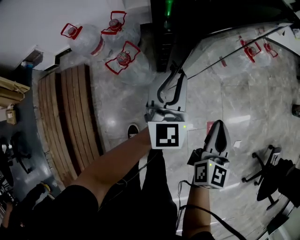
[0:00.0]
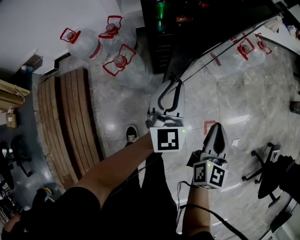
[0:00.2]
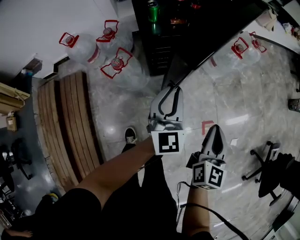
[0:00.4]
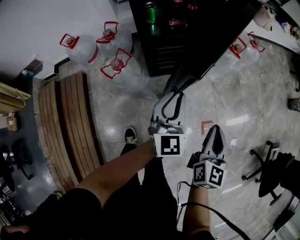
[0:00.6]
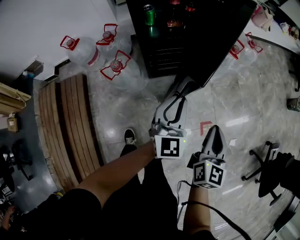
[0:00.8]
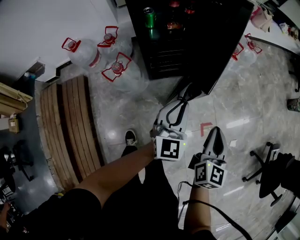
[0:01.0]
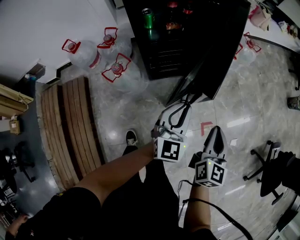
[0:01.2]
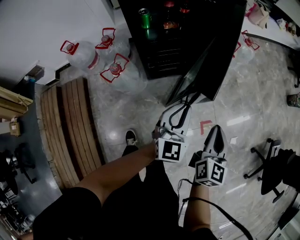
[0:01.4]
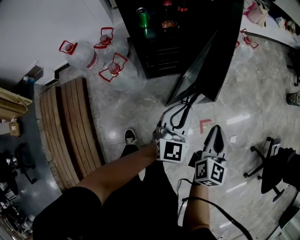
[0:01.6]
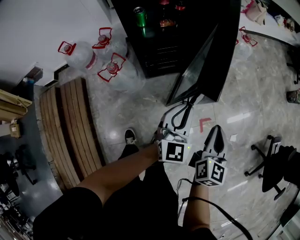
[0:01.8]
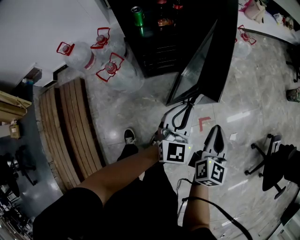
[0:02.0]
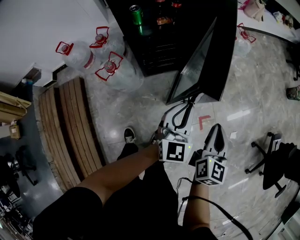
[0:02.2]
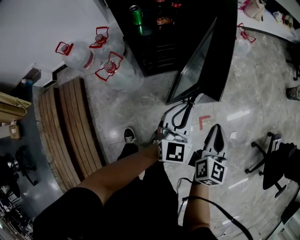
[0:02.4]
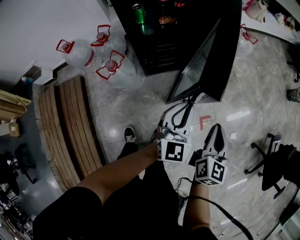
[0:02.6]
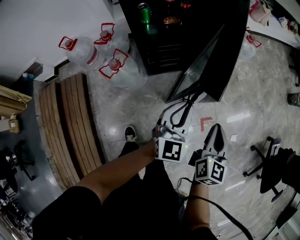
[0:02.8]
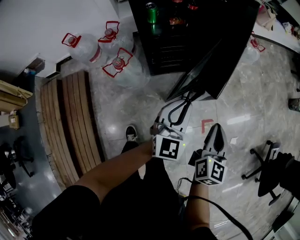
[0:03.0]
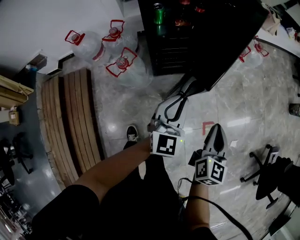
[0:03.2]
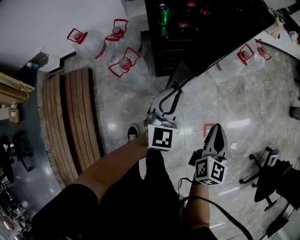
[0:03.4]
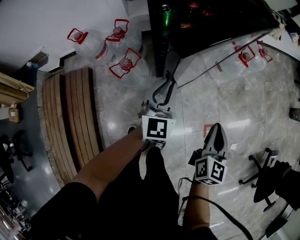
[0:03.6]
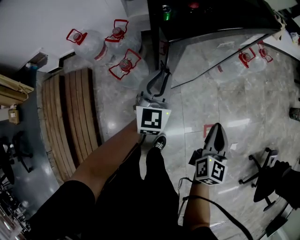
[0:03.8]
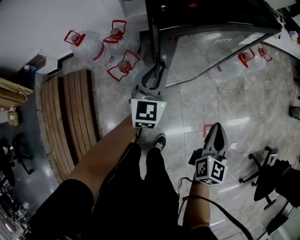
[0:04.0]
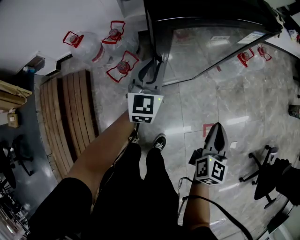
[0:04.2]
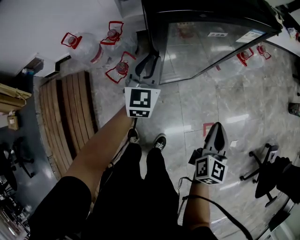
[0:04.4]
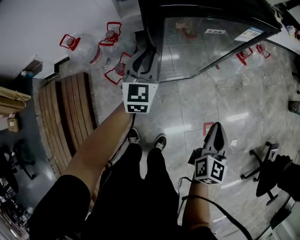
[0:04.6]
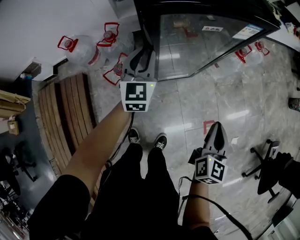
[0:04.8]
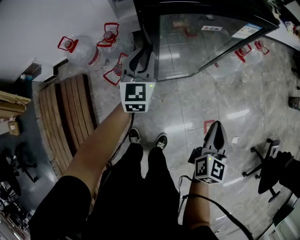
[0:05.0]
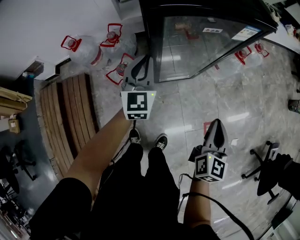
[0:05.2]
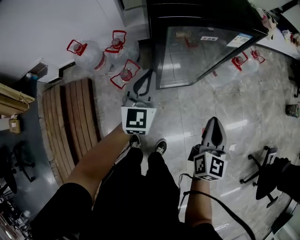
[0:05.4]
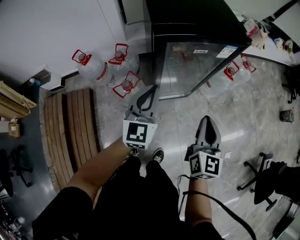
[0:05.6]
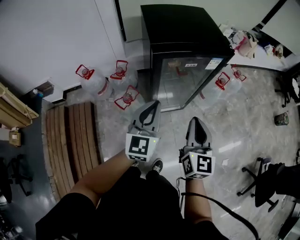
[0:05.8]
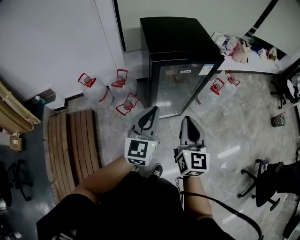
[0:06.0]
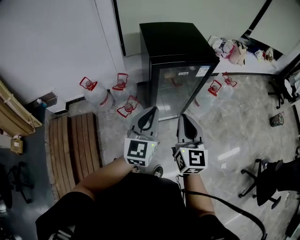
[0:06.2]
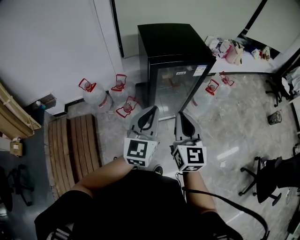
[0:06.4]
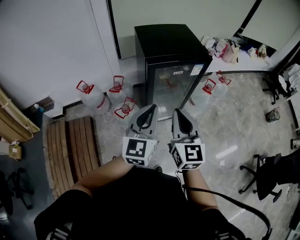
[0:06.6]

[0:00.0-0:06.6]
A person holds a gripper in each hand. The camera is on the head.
0:00.0 to 0:01.6: The right gripper moves to the right, about 10 cm, while the left gripper is displaced to the right and backward by about 20 cm.
0:01.6 to 0:03.2: The left gripper is displaced to the left by approximately 10 cm. The right gripper goes approximately 5 cm to the left.
0:03.2 to 0:05.0: The right gripper shifts approximately 5 cm forward. The left gripper moves to the left and forward, roughly 25 cm.
0:05.0 to 0:06.6: The right gripper heads upward and to the left, covering roughly 35 cm, and changes its angle by some 30 degrees; the left gripper moves upward and backward, approximately 40 cm.

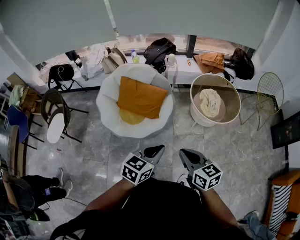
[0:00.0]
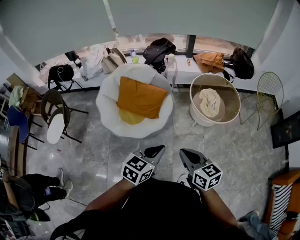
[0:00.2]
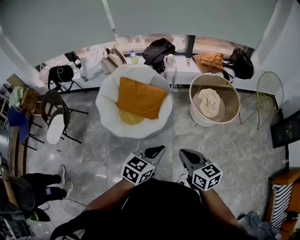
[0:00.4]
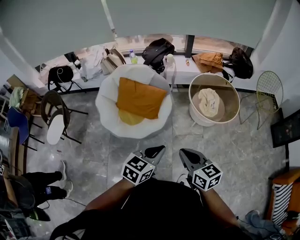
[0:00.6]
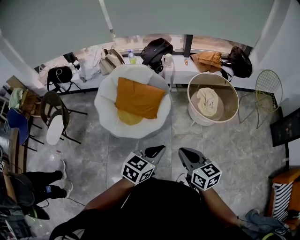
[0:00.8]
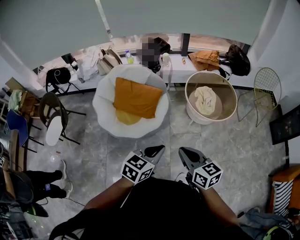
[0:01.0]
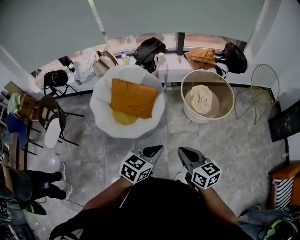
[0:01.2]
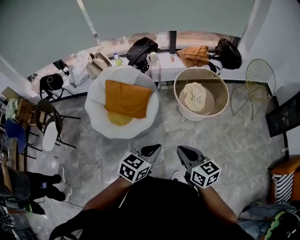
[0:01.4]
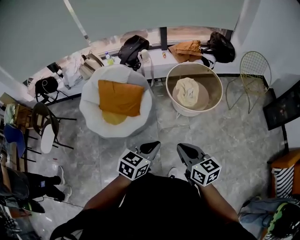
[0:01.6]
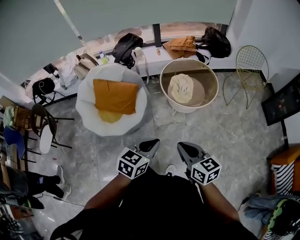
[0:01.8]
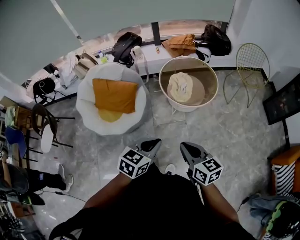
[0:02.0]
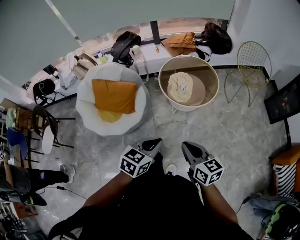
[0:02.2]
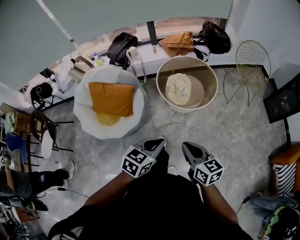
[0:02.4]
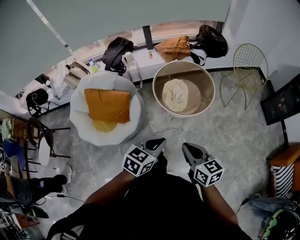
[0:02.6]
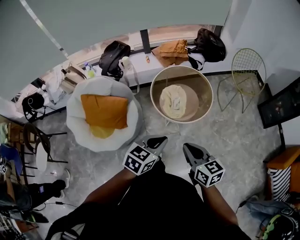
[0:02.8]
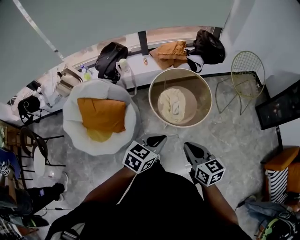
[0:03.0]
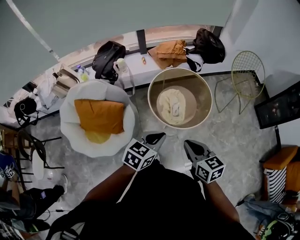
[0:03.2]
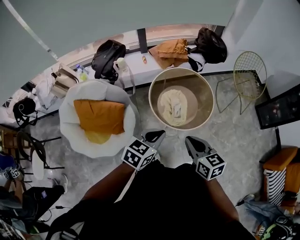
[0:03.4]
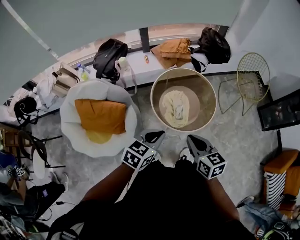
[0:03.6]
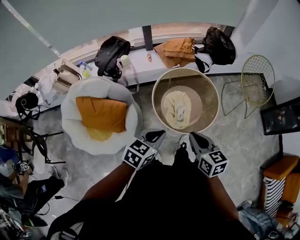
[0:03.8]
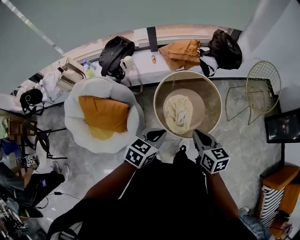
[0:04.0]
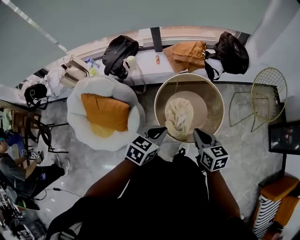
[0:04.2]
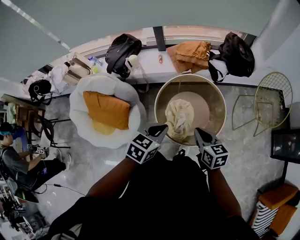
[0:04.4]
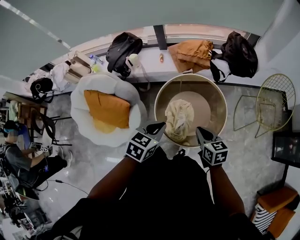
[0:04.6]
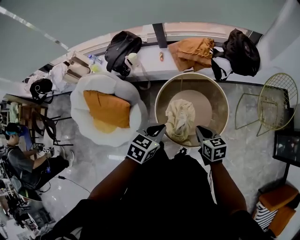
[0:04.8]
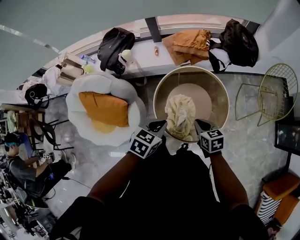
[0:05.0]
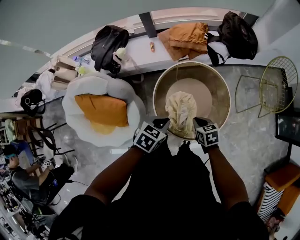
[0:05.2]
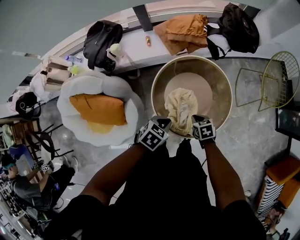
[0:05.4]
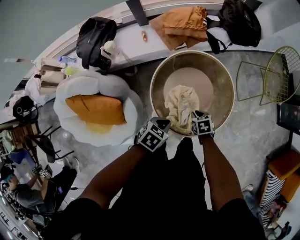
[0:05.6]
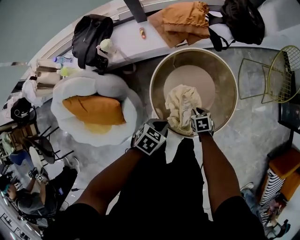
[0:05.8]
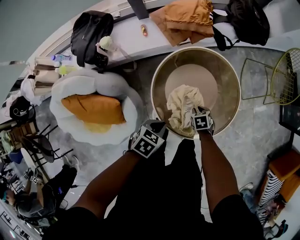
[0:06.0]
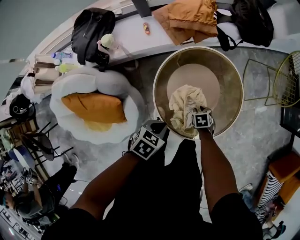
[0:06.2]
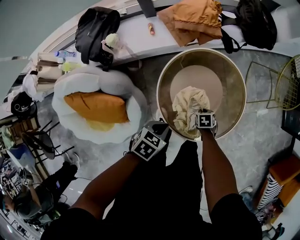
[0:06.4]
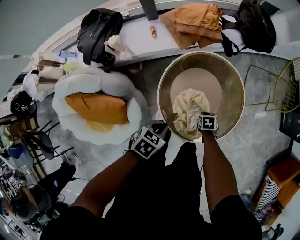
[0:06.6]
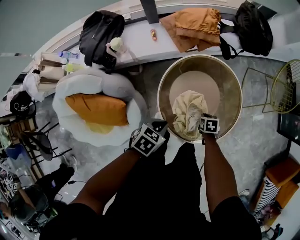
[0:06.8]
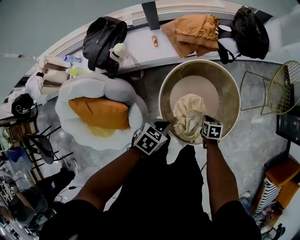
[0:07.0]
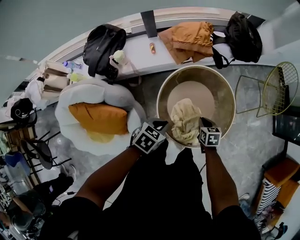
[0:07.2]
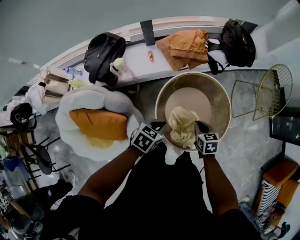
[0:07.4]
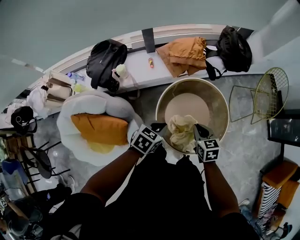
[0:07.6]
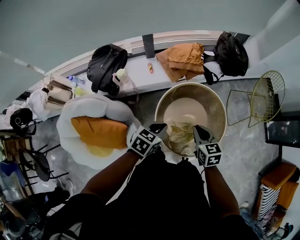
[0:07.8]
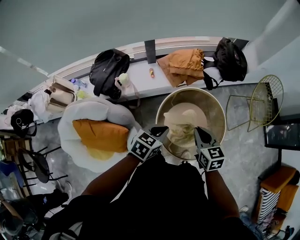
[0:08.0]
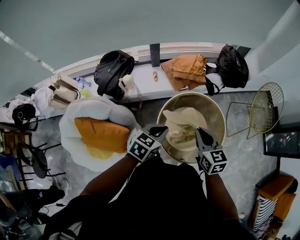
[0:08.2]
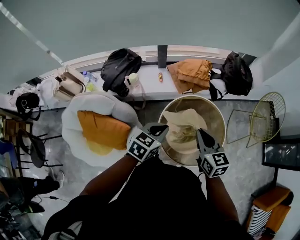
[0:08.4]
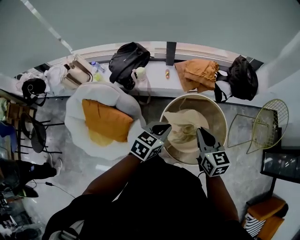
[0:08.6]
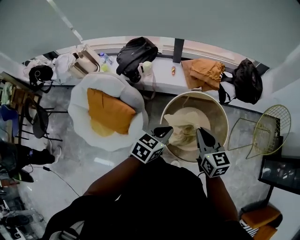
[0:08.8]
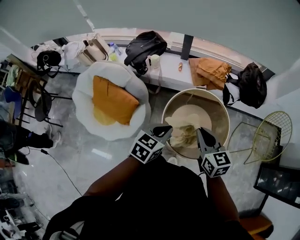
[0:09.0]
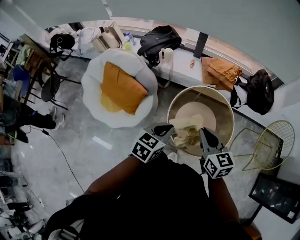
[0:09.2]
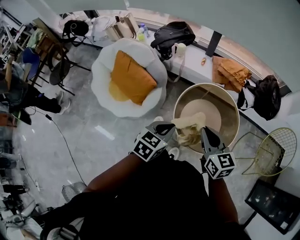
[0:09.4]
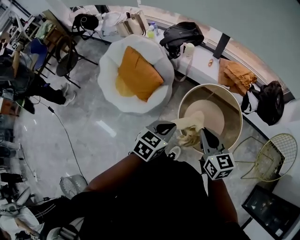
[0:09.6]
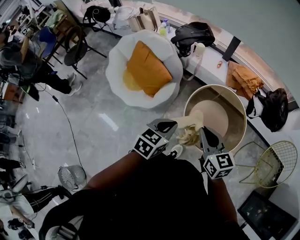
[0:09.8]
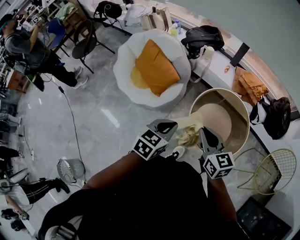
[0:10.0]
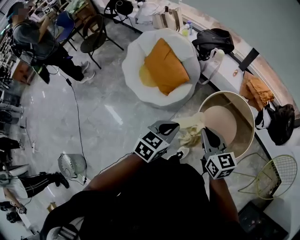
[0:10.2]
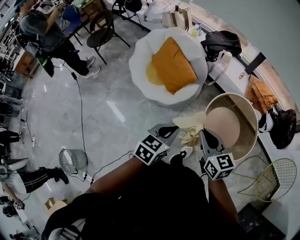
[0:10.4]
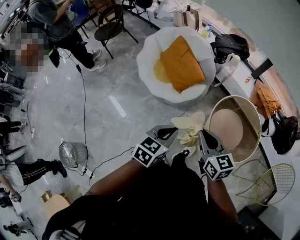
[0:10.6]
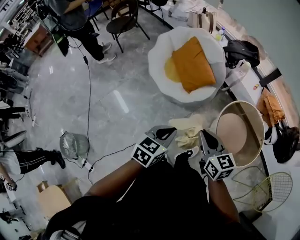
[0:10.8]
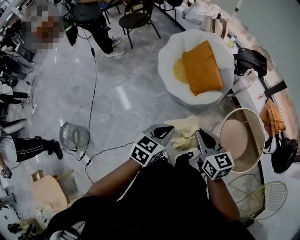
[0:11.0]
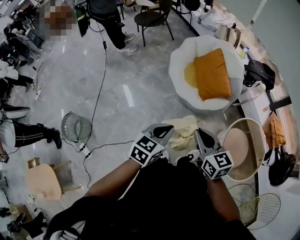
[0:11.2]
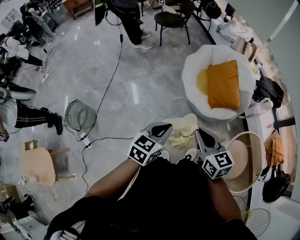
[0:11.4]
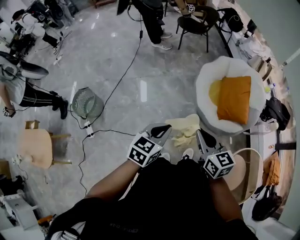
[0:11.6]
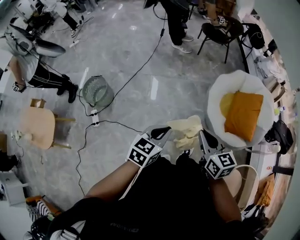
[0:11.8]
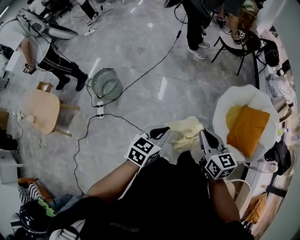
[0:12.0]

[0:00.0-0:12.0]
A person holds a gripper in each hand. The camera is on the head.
0:00.0 to 0:01.6: Both grippers move to the right, roughly 15 cm.
0:01.6 to 0:03.0: The right gripper is displaced forward and to the right by approximately 25 cm. The left gripper goes some 25 cm forward.
0:03.0 to 0:04.4: The grippers both shift forward by about 25 cm.
0:04.4 to 0:06.0: The left gripper shifts roughly 25 cm downward, and swivels some 30 degrees. The right gripper goes about 35 cm downward, angles its fingers downward, by about 40 degrees, and opens up.
0:06.0 to 0:07.6: The left gripper goes some 15 cm upward, while the right gripper travels upward by about 25 cm, and points its fingers approximately 30 degrees further upward.
0:07.6 to 0:09.0: The right gripper shifts approximately 20 cm upward, and turns by approximately 30 degrees. Meanwhile the left gripper ends up roughly 20 cm from where it was, and swivels roughly 30 degrees.
0:09.0 to 0:10.4: The right gripper moves some 30 cm, and turns by about 30 degrees. The left gripper ends up roughly 30 cm from where it was, and rotates roughly 30 degrees.
0:10.4 to 0:12.0: The pair of grippers is taken some 50 cm. The left gripper turns by roughly 60 degrees, while the right gripper changes its angle by some 60 degrees.

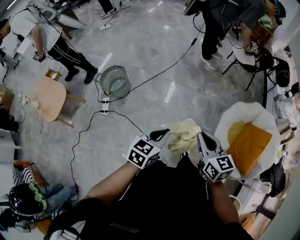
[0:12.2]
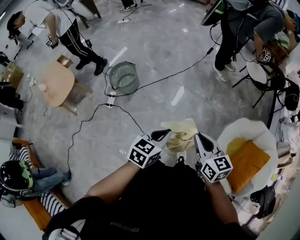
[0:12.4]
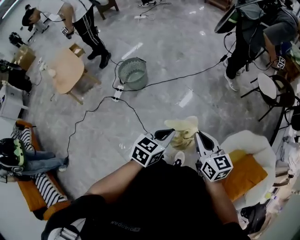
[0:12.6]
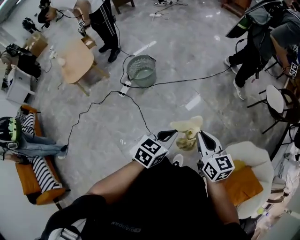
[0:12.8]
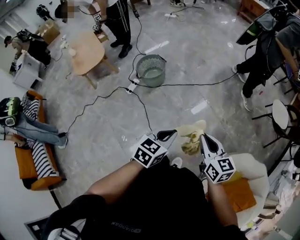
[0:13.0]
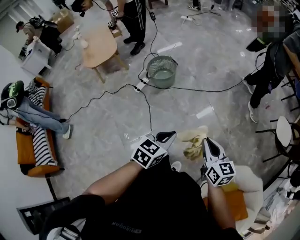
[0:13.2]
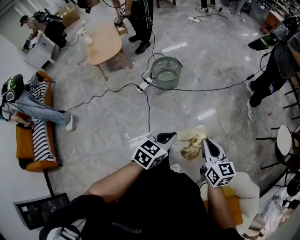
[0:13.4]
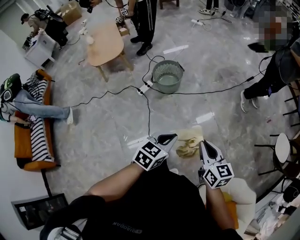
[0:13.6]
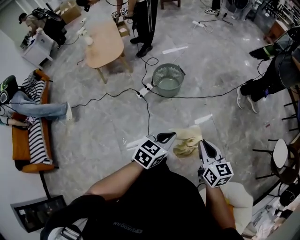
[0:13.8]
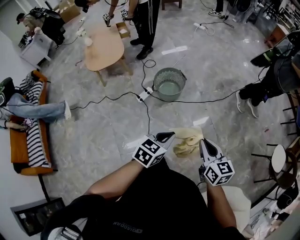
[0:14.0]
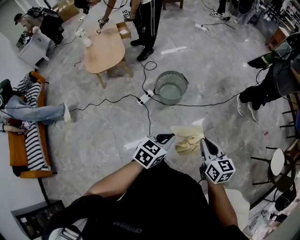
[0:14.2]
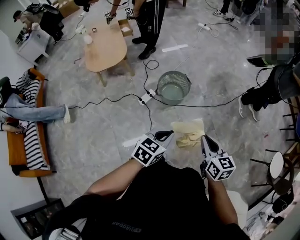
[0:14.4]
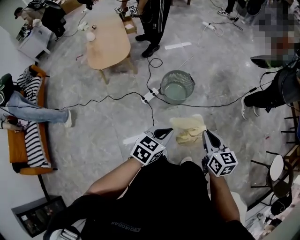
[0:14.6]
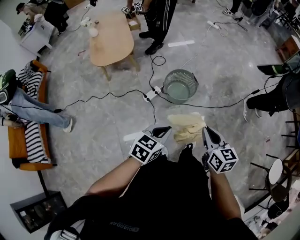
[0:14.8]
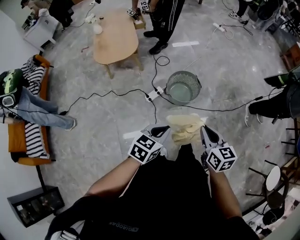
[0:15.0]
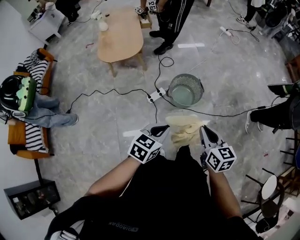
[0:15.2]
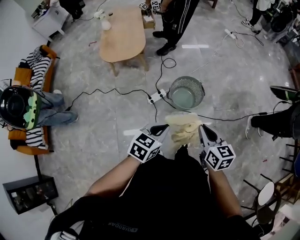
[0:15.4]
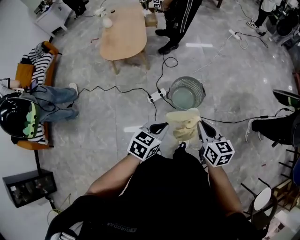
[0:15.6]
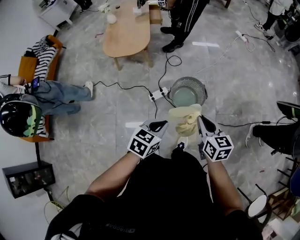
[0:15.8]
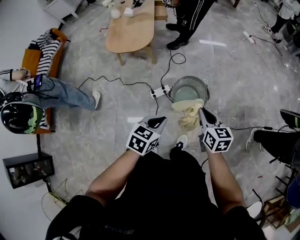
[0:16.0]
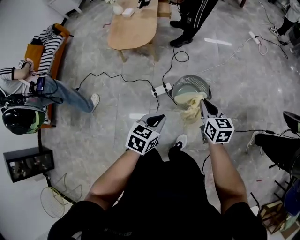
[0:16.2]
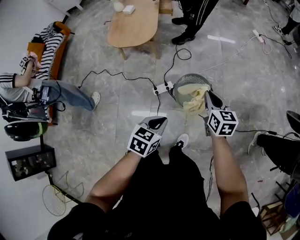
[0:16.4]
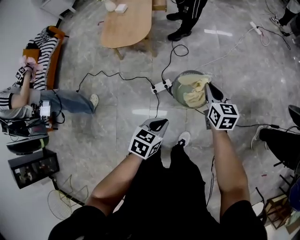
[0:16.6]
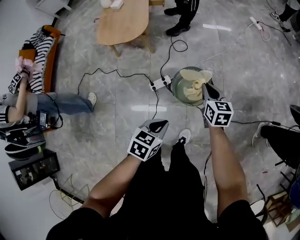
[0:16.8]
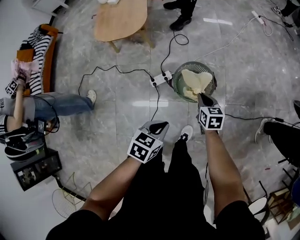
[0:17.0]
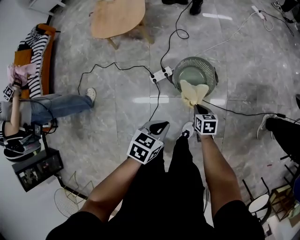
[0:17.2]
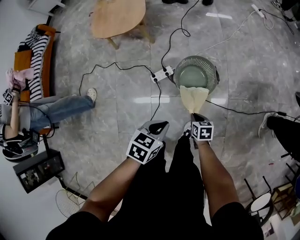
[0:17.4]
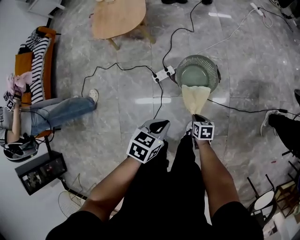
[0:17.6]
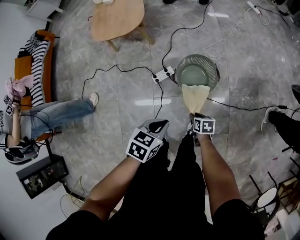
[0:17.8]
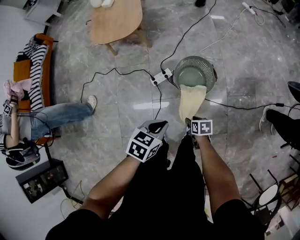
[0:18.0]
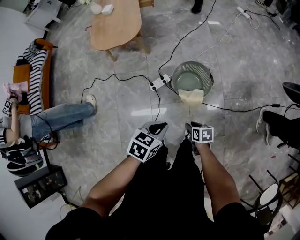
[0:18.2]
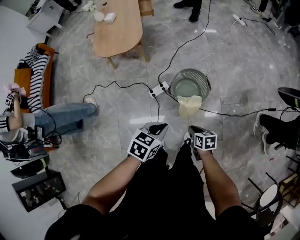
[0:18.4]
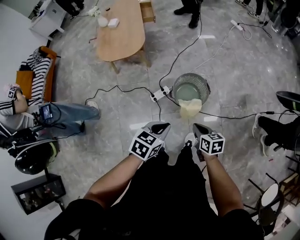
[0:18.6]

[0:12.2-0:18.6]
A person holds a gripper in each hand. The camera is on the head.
0:12.2 to 0:13.8: The left gripper shifts by some 20 cm, and rotates some 40 degrees; the right gripper moves approximately 30 cm, and turns by approximately 40 degrees.
0:13.8 to 0:15.4: The two grippers go about 35 cm forward and to the left.
0:15.4 to 0:17.0: The right gripper travels downward and forward by approximately 35 cm. Meanwhile the left gripper heads downward, forward and to the right, covering some 20 cm.
0:17.0 to 0:18.6: The right gripper is displaced backward and upward by about 20 cm, and opens and closes again. Meanwhile the left gripper travels upward and to the left by roughly 10 cm.
